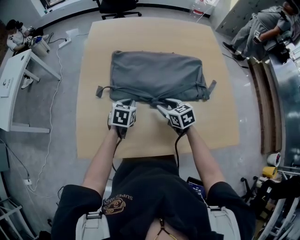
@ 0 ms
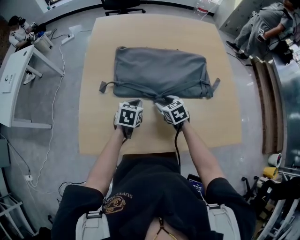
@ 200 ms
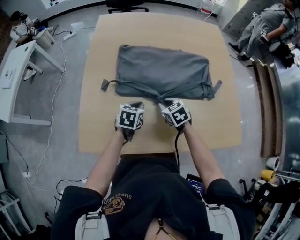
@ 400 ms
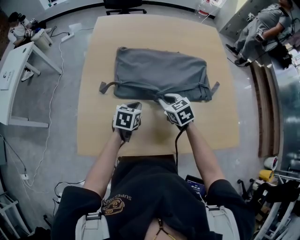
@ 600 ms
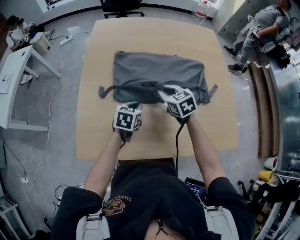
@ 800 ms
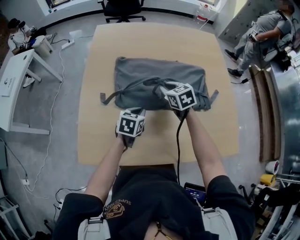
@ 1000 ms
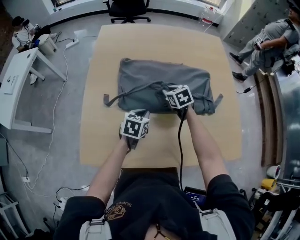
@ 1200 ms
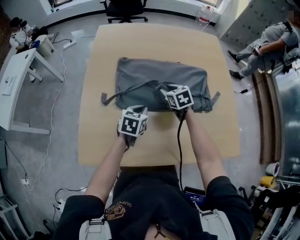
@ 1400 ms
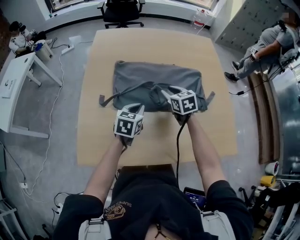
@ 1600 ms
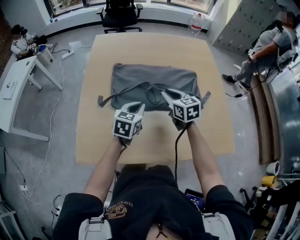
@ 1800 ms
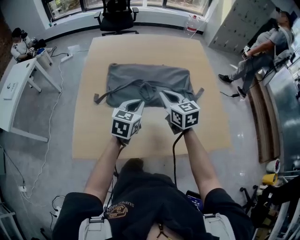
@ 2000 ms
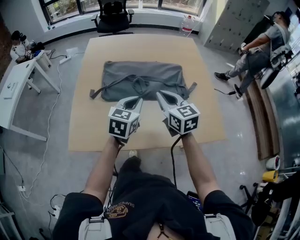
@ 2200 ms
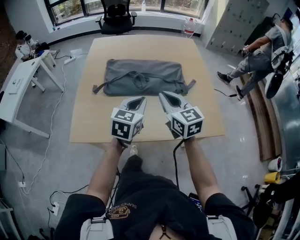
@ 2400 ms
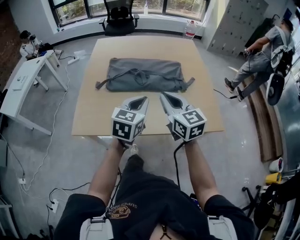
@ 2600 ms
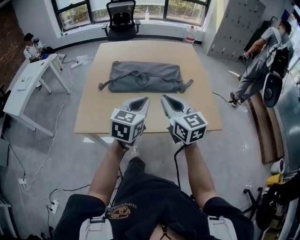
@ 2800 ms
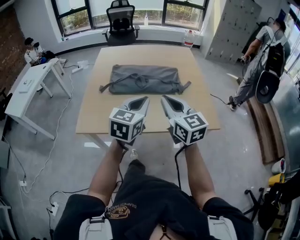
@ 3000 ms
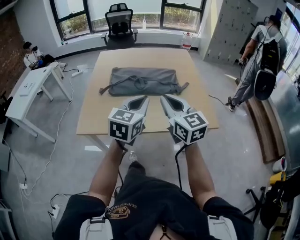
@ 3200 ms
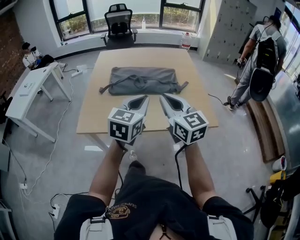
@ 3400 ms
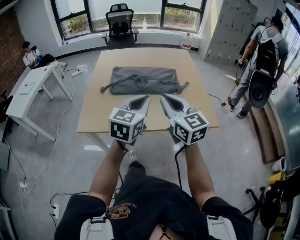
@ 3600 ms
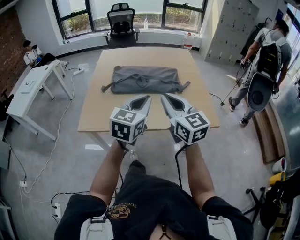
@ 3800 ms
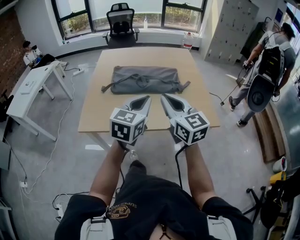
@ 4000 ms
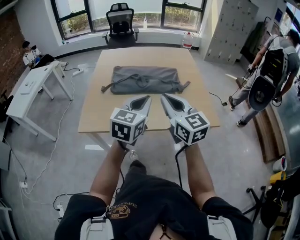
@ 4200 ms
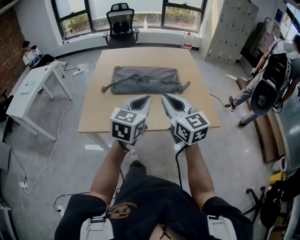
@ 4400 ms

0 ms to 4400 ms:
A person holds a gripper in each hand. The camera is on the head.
0 ms to 1400 ms: The right gripper is displaced forward by some 15 cm, and closes, then opens again.
1400 ms to 3000 ms: The left gripper moves backward, upward and to the right, approximately 40 cm, and swivels some 30 degrees, while the right gripper moves backward and upward, roughly 50 cm, points its fingers some 40 degrees further upward, and closes.
3000 ms to 4400 ms: The grippers make only small movements.

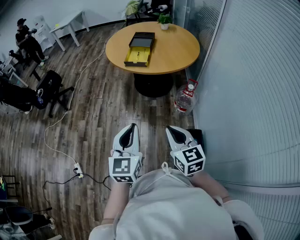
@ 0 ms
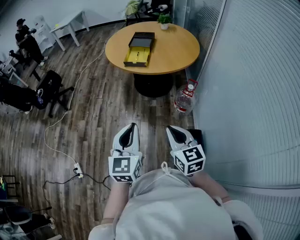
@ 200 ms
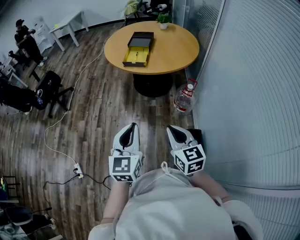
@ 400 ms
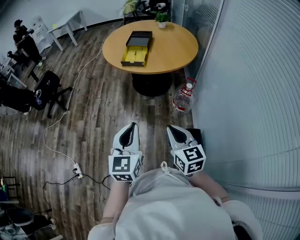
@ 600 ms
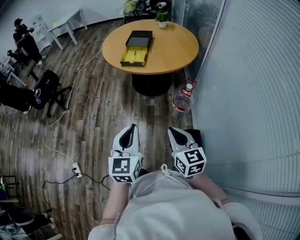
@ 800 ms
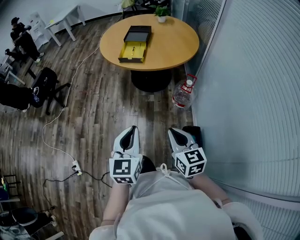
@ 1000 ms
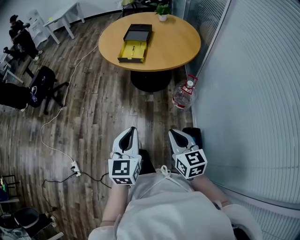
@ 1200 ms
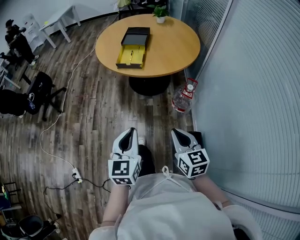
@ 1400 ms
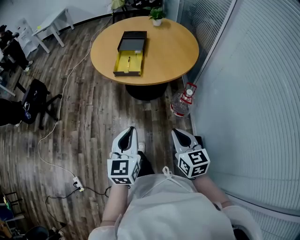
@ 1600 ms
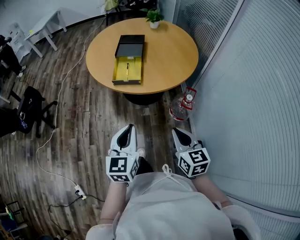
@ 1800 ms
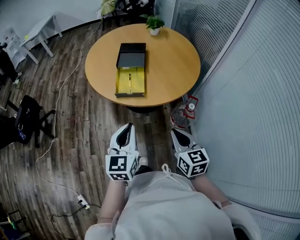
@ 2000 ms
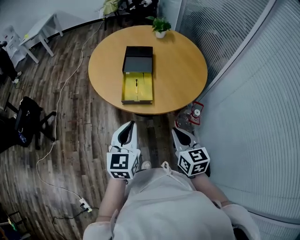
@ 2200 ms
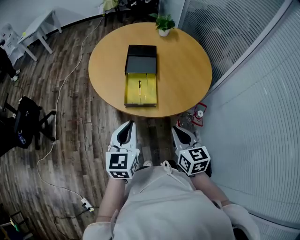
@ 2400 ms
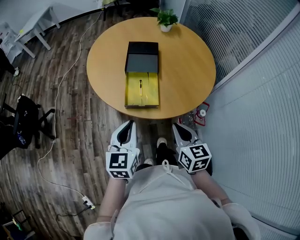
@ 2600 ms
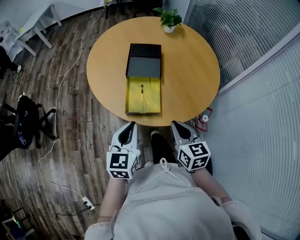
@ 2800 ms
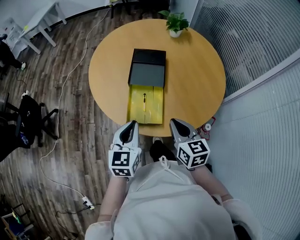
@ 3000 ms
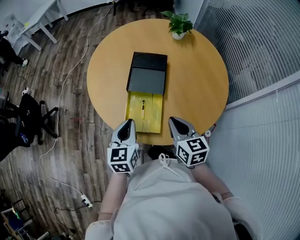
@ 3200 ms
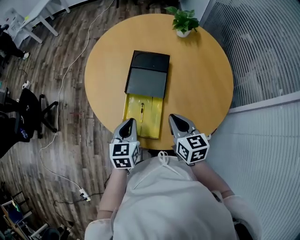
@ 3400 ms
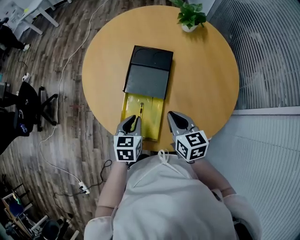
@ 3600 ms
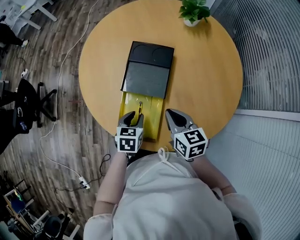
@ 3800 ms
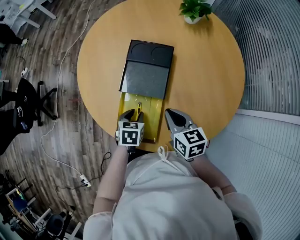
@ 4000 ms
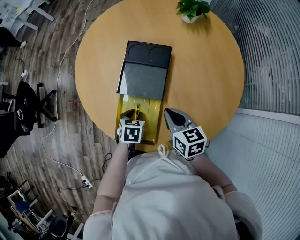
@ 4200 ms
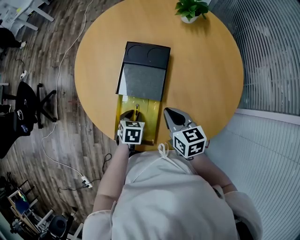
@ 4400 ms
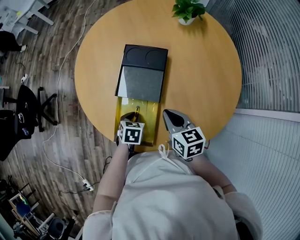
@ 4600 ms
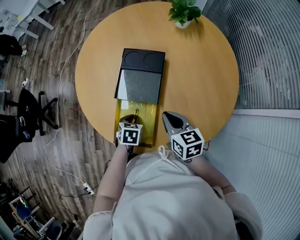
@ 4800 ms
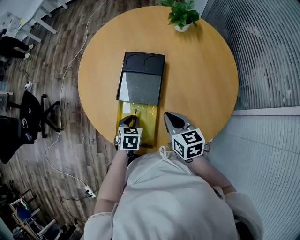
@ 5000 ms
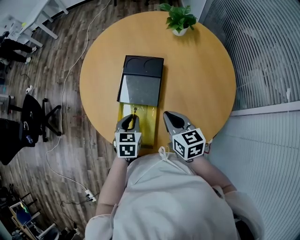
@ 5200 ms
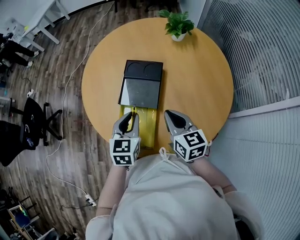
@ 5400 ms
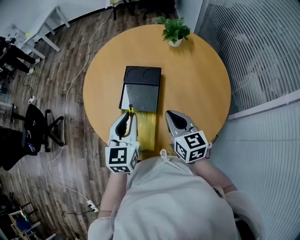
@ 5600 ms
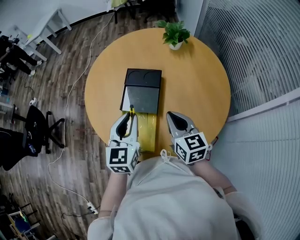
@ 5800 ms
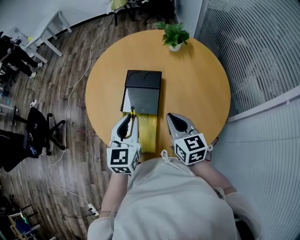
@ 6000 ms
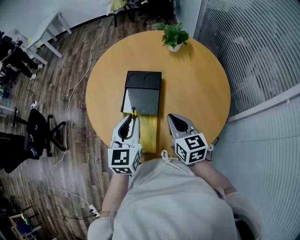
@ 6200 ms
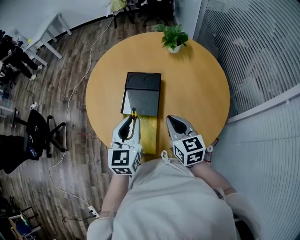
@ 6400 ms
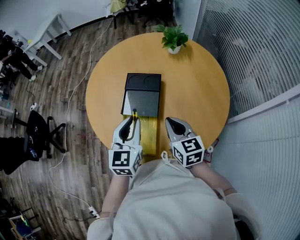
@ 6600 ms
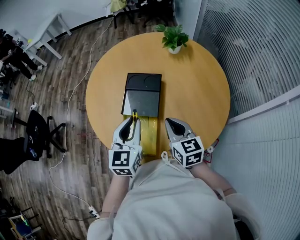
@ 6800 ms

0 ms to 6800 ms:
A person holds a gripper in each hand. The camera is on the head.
0 ms to 1400 ms: The left gripper is displaced forward and downward by about 15 cm; the right gripper shifts some 15 cm forward and to the right.
1400 ms to 2800 ms: The pair of grippers is taken forward, about 50 cm.
2800 ms to 4000 ms: The grippers both shift forward and downward by roughly 30 cm. The left gripper points its fingers about 40 degrees further downward, and opens.
4000 ms to 5400 ms: The right gripper moves upward, approximately 10 cm; the left gripper is displaced upward by about 15 cm, and rotates roughly 30 degrees.
5400 ms to 6800 ms: The left gripper shifts roughly 10 cm upward.

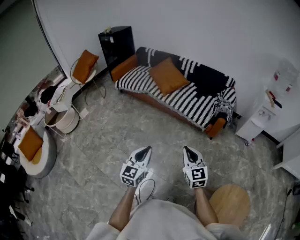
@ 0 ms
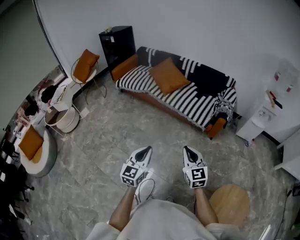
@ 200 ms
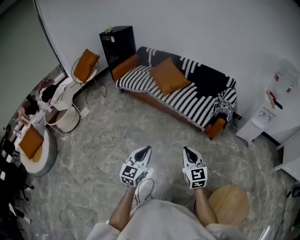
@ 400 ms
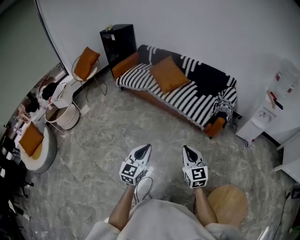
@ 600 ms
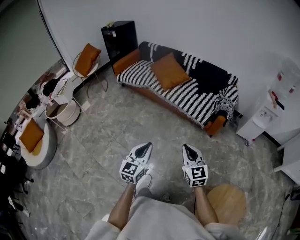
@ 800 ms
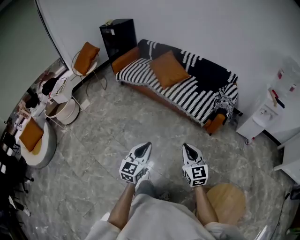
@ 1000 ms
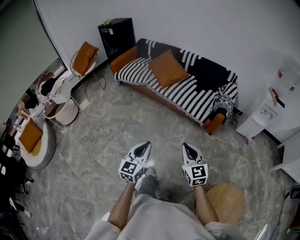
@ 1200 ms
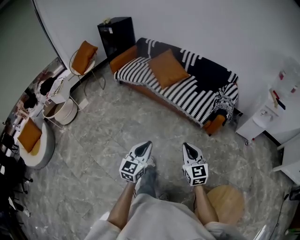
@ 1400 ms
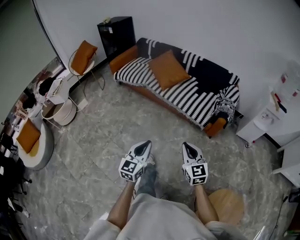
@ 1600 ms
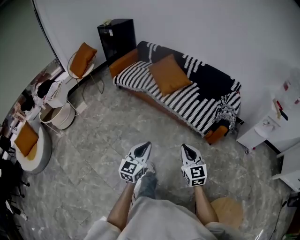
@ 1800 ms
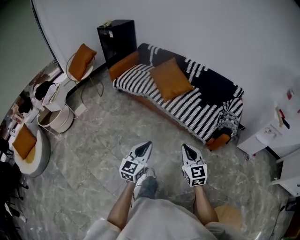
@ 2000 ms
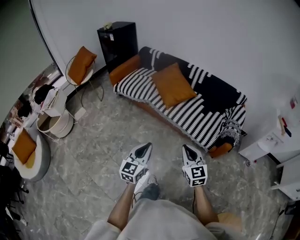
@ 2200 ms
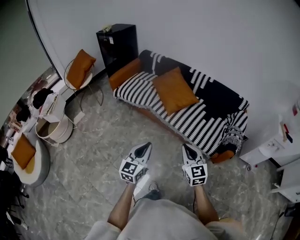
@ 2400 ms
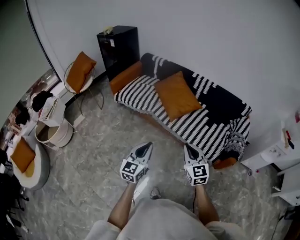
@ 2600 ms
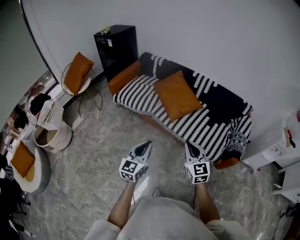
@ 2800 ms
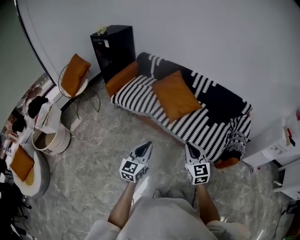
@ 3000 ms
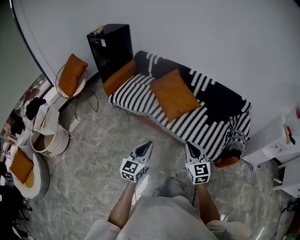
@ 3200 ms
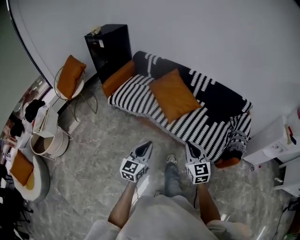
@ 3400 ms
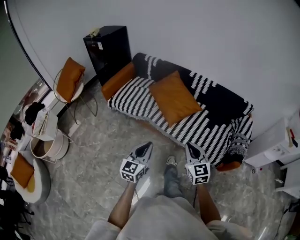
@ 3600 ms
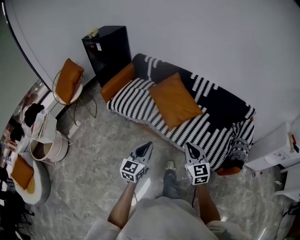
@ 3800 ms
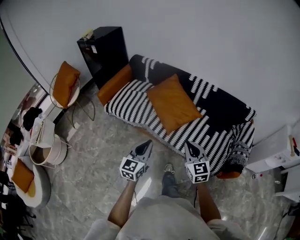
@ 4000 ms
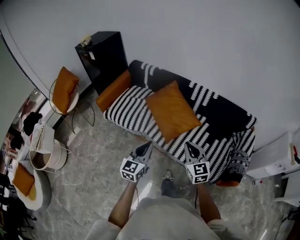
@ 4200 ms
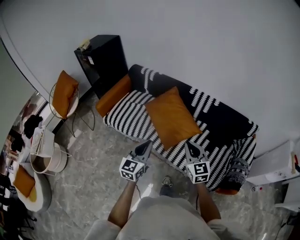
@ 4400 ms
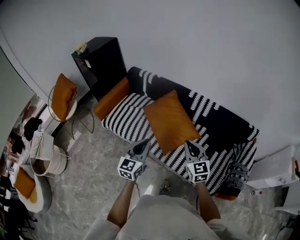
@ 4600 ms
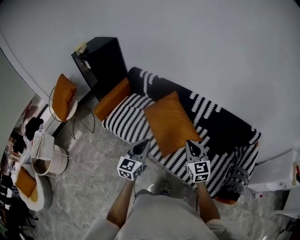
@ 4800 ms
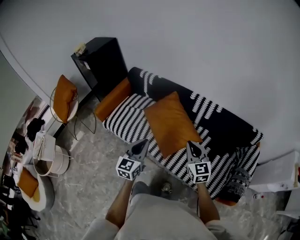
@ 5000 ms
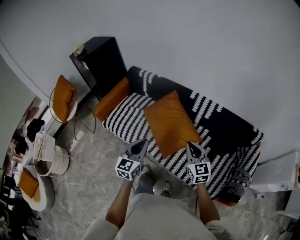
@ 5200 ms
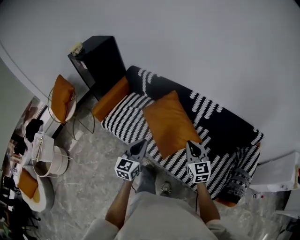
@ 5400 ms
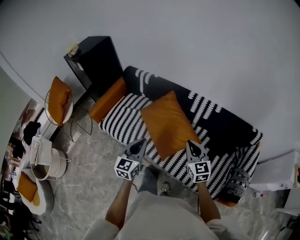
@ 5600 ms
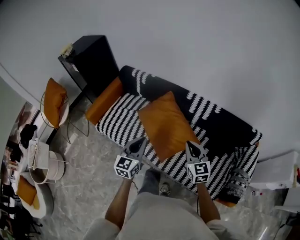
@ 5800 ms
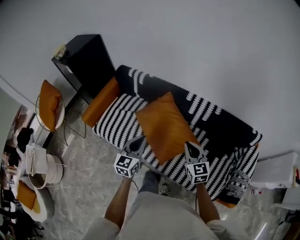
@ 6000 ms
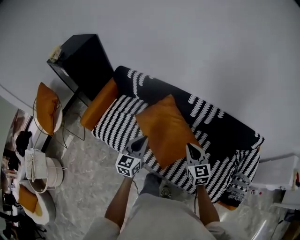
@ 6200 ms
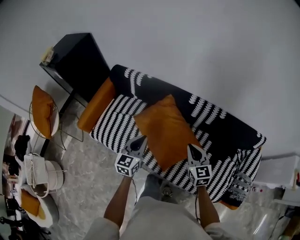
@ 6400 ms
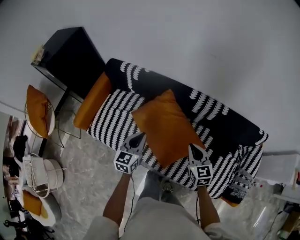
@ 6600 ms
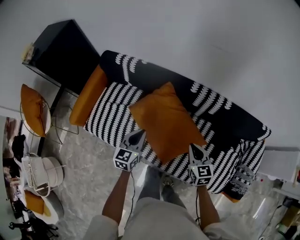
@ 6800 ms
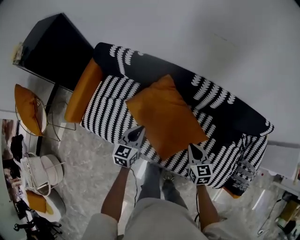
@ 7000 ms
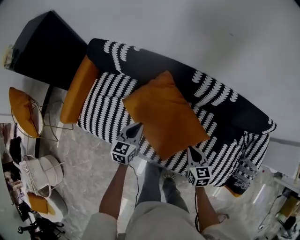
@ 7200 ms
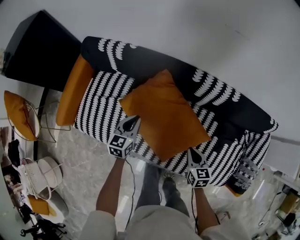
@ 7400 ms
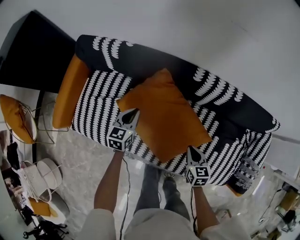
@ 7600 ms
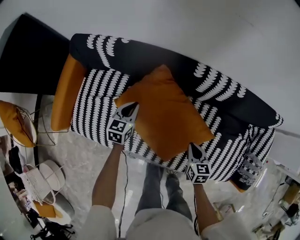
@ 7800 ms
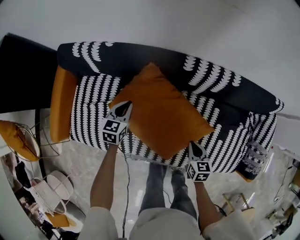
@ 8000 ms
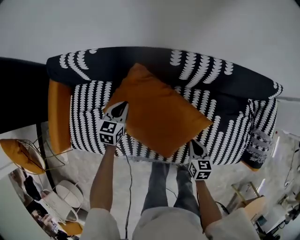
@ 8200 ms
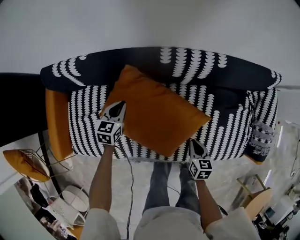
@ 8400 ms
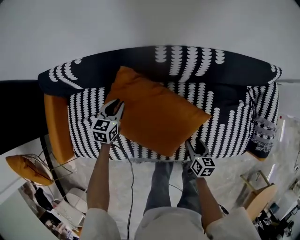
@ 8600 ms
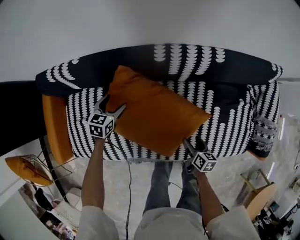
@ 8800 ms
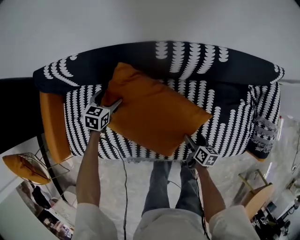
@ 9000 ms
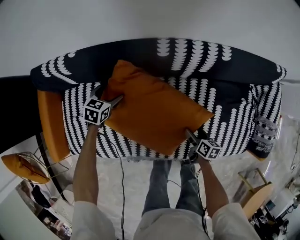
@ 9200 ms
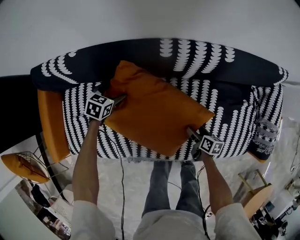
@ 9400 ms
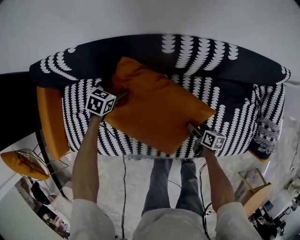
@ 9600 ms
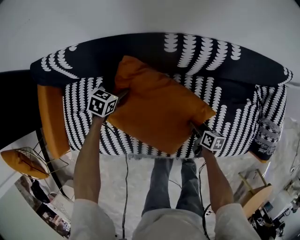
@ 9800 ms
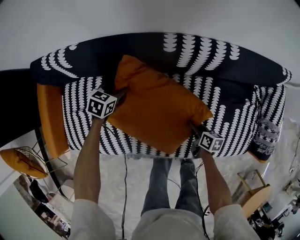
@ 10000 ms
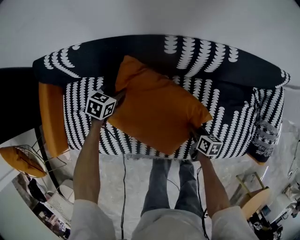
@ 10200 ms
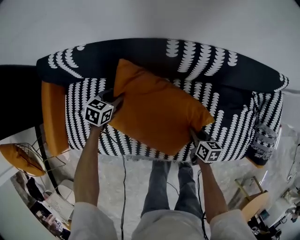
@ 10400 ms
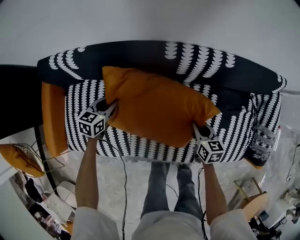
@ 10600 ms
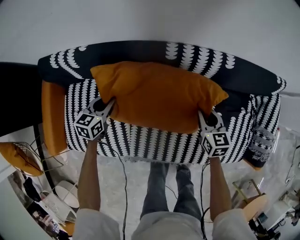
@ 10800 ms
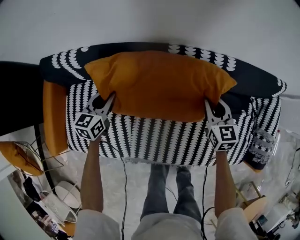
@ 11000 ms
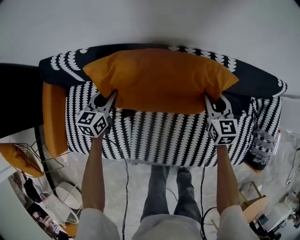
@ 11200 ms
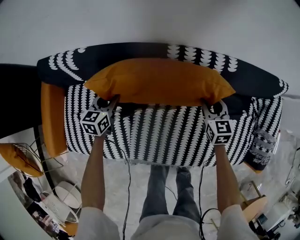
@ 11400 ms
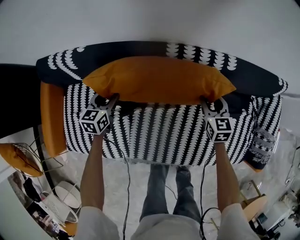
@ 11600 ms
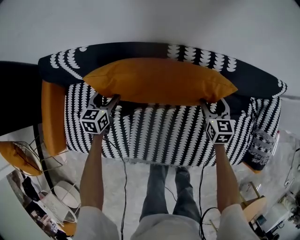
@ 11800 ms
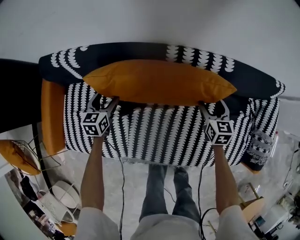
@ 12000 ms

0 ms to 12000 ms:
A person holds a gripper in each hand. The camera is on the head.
0 ms to 1600 ms: Both grippers travel together forward, approximately 5 cm.
1600 ms to 3000 ms: The left gripper travels forward and to the left by roughly 40 cm, while the right gripper shifts approximately 35 cm forward.
3000 ms to 4400 ms: Both grippers travel together forward, approximately 30 cm.
4400 ms to 6000 ms: Both grippers travel together forward, about 20 cm.
6000 ms to 7600 ms: The right gripper is displaced downward by approximately 25 cm, and changes its angle by approximately 40 degrees. Meanwhile the left gripper shifts approximately 40 cm forward and downward, and changes its angle by some 20 degrees.
7600 ms to 9000 ms: The right gripper is displaced downward and to the right by some 15 cm, twists roughly 40 degrees clockwise, seen from behind, and opens. The left gripper moves downward and forward, about 15 cm, turns by roughly 30 degrees, and opens up.
9000 ms to 10400 ms: The left gripper closes up; the right gripper changes place by some 5 cm, and closes up.
10400 ms to 12000 ms: The right gripper goes some 20 cm forward and upward, rotates some 30 degrees, and opens up. The left gripper reaches approximately 10 cm upward, then returns, rotates some 30 degrees, and opens up.
